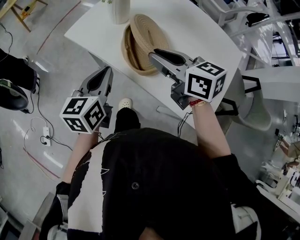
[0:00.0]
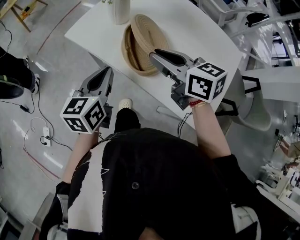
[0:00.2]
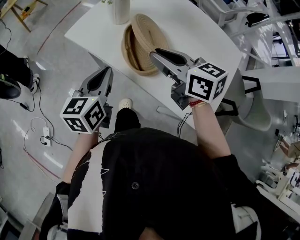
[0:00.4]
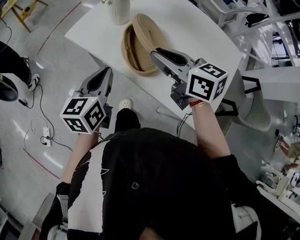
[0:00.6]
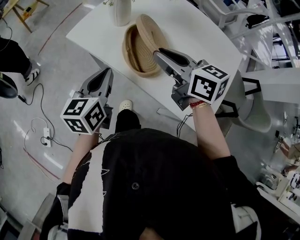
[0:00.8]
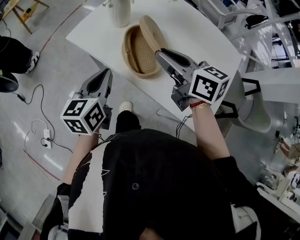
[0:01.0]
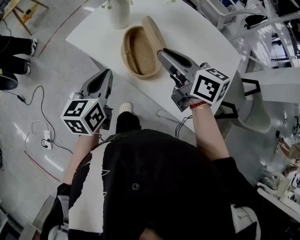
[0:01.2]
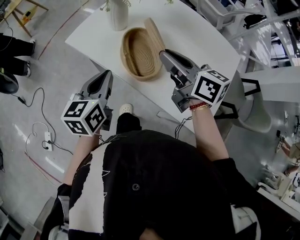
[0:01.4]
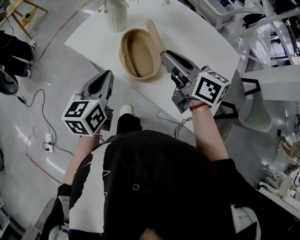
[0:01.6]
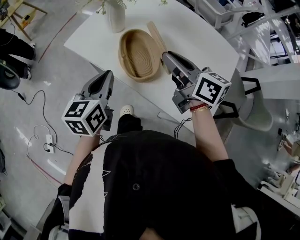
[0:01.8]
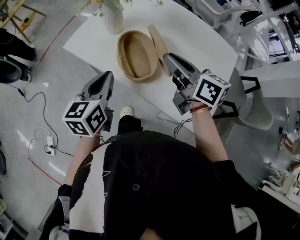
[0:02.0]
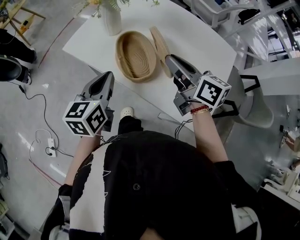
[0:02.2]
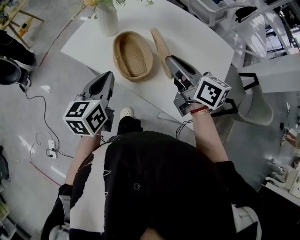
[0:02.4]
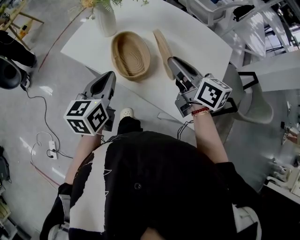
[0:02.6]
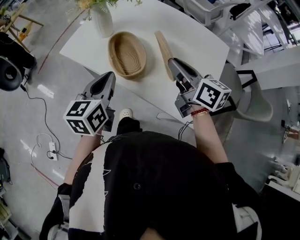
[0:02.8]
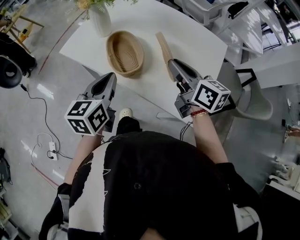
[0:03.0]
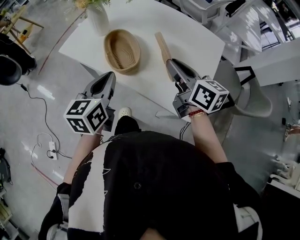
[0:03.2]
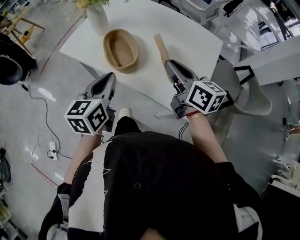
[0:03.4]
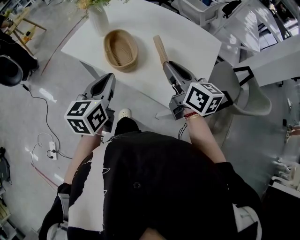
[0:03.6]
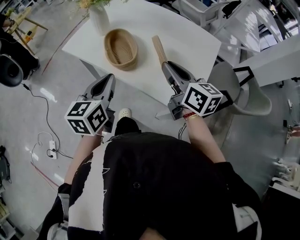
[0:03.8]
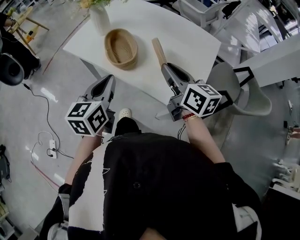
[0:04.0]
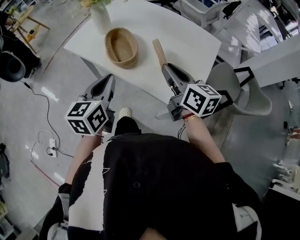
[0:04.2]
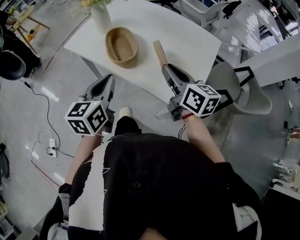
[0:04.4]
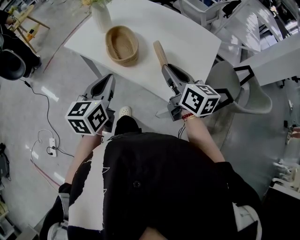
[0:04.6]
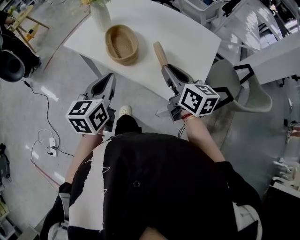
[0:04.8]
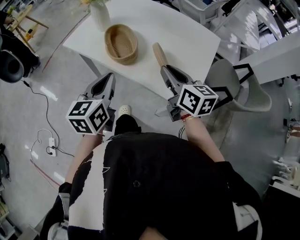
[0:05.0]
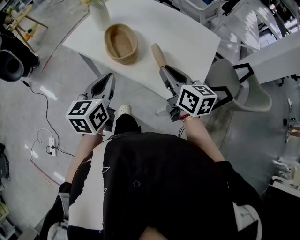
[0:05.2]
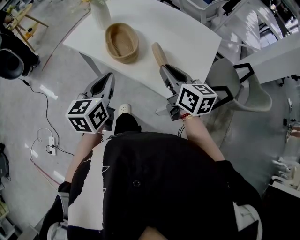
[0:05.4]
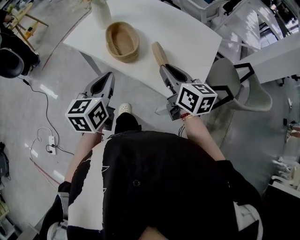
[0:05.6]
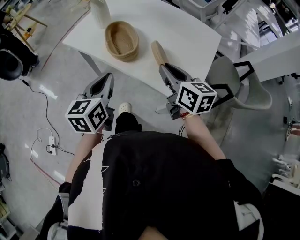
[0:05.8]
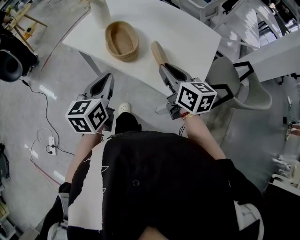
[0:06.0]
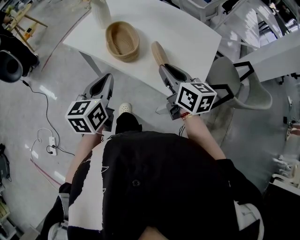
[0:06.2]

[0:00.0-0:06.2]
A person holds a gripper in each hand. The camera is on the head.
0:00.0 to 0:01.6: The right gripper is displaced to the right by roughly 5 cm.
0:01.6 to 0:03.2: The two grippers go some 10 cm to the right and backward.
0:03.2 to 0:04.6: The grippers both shift backward by roughly 5 cm.
0:04.6 to 0:06.2: The grippers move only a little.

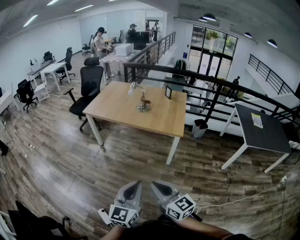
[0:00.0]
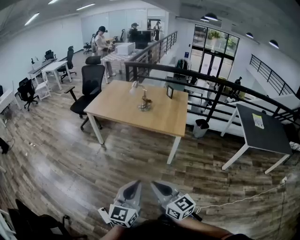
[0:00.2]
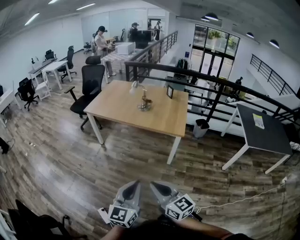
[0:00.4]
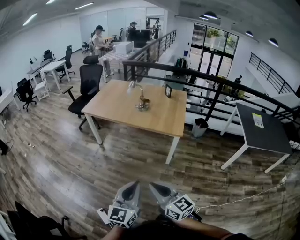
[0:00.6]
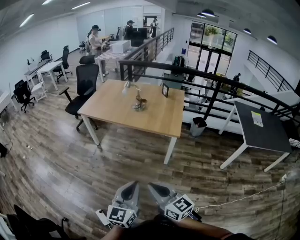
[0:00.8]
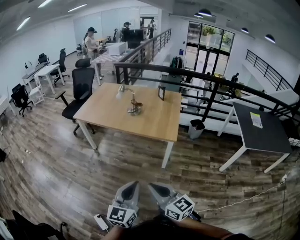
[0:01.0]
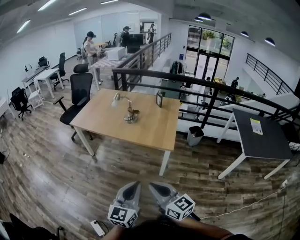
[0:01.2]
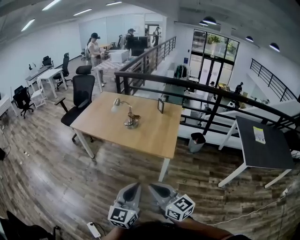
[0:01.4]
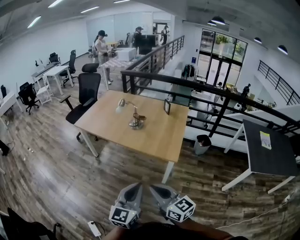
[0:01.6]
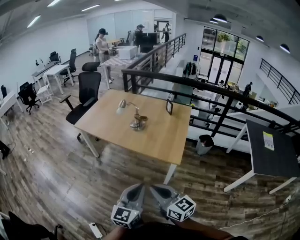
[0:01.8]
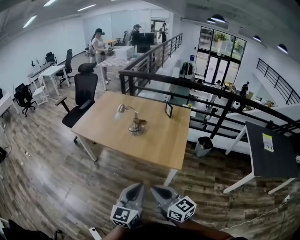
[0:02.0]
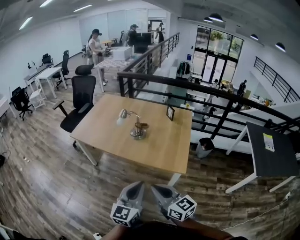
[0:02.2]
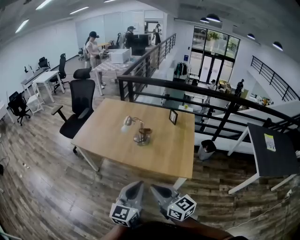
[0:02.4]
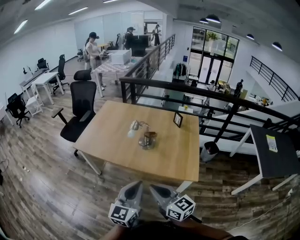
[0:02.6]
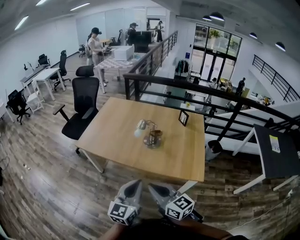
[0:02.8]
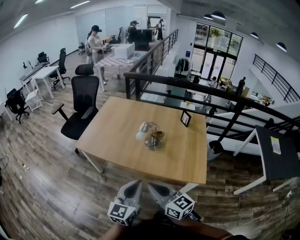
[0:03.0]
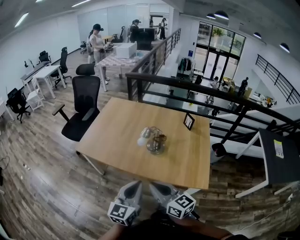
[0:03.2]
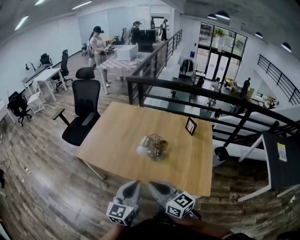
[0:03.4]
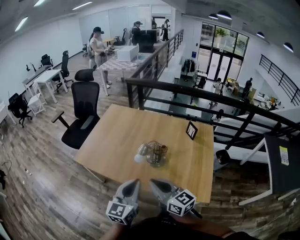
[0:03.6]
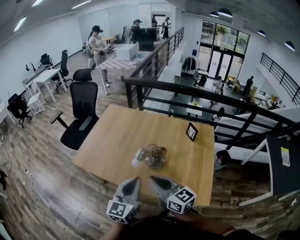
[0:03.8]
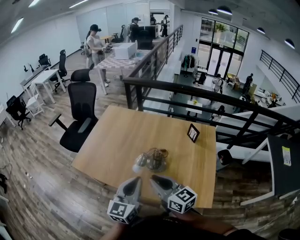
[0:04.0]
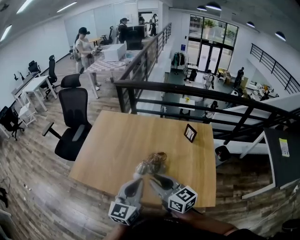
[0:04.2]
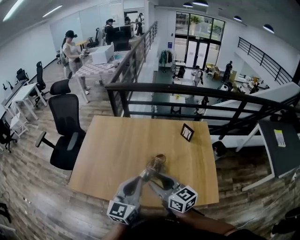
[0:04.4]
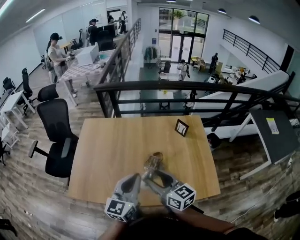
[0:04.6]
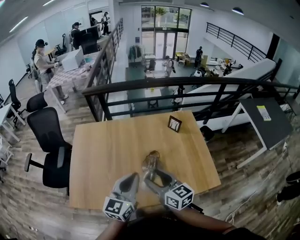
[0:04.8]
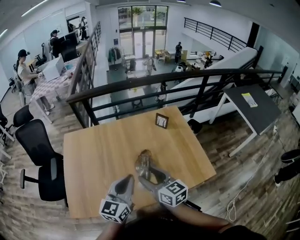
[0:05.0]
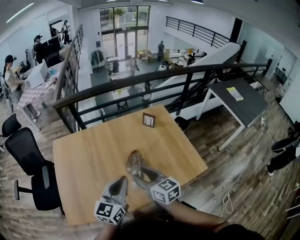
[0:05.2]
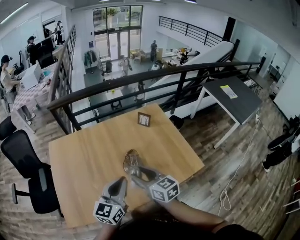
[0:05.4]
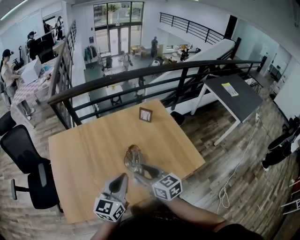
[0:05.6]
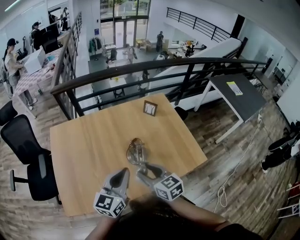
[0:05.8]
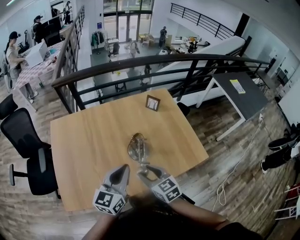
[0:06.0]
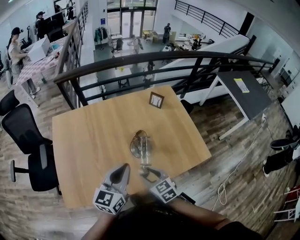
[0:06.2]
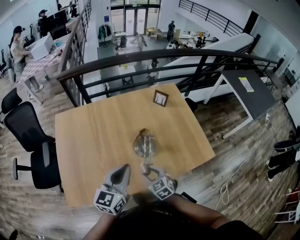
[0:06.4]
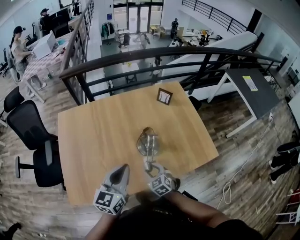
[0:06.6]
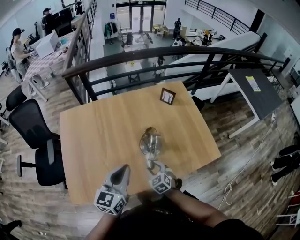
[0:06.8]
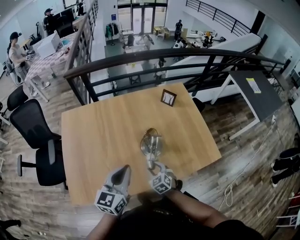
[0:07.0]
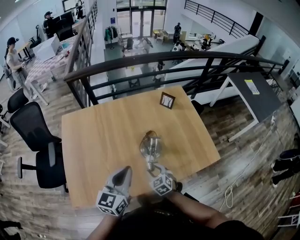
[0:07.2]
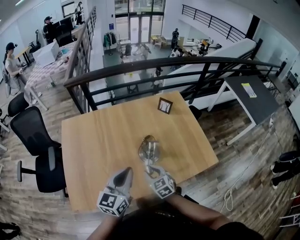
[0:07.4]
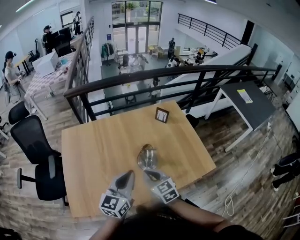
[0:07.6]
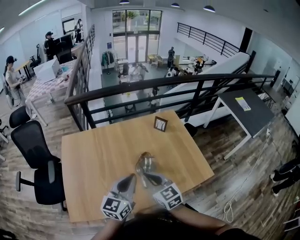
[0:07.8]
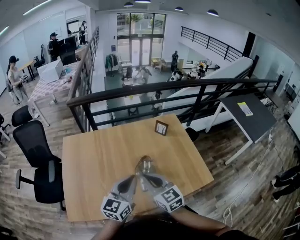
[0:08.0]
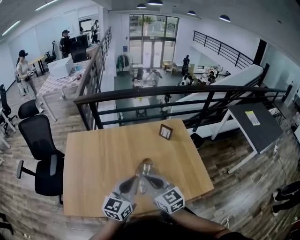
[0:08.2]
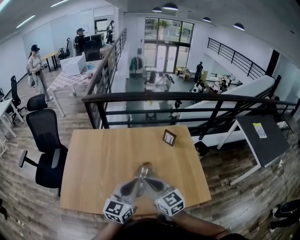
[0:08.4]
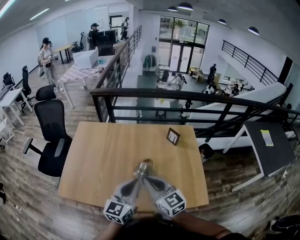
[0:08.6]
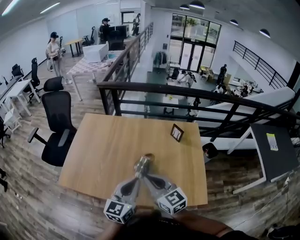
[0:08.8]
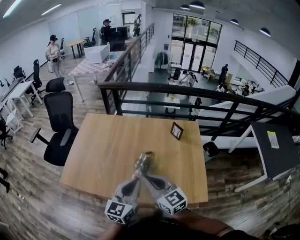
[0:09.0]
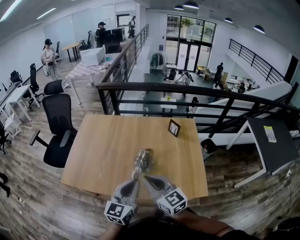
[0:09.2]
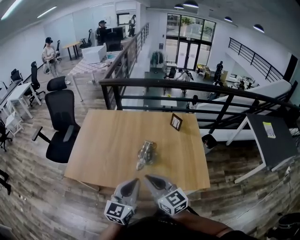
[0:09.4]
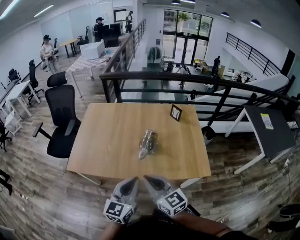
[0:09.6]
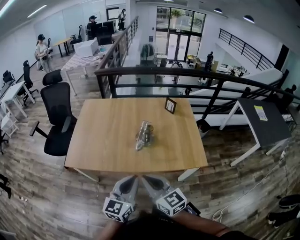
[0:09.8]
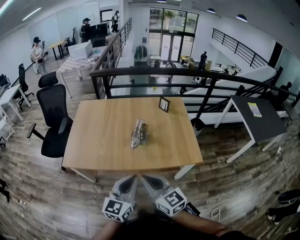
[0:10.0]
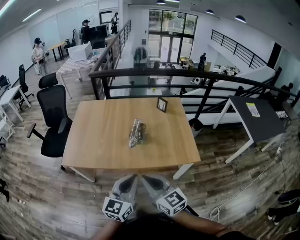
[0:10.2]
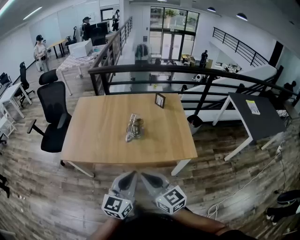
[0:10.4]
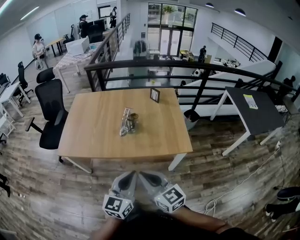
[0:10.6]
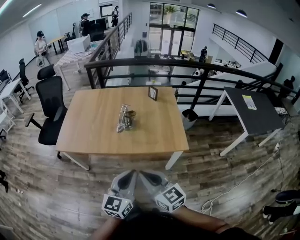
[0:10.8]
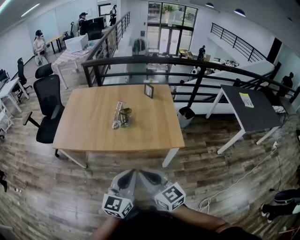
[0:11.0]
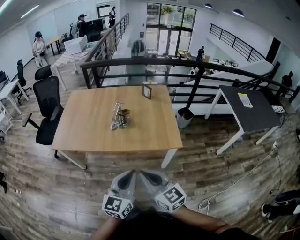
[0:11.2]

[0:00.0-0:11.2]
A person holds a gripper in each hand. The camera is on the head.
0:00.0 to 0:01.6: The two grippers go approximately 25 cm forward and to the right.
0:01.6 to 0:03.2: Both grippers move forward and to the left, approximately 40 cm.
0:03.2 to 0:04.8: The right gripper moves approximately 30 cm, changes its angle by approximately 30 degrees, and opens its fingers. The left gripper changes place by approximately 30 cm, and changes its angle by some 20 degrees.
0:04.8 to 0:06.4: The right gripper is displaced downward by some 20 cm, and tilts its fingers roughly 30 degrees downward; the left gripper moves approximately 5 cm.
0:06.4 to 0:08.0: The left gripper shifts by roughly 5 cm. Meanwhile the right gripper is displaced upward by some 20 cm, changes its angle by some 30 degrees, and closes its fingers.
0:08.0 to 0:09.6: Both grippers travel together backward, about 20 cm. The left gripper changes its angle by approximately 20 degrees, while the right gripper changes its angle by roughly 20 degrees.
0:09.6 to 0:11.2: Both grippers move backward and to the right, about 25 cm.

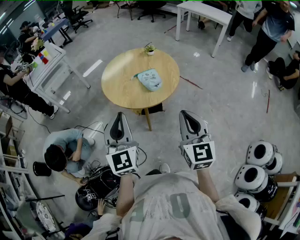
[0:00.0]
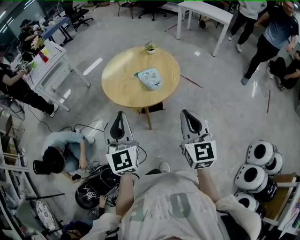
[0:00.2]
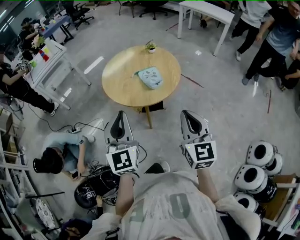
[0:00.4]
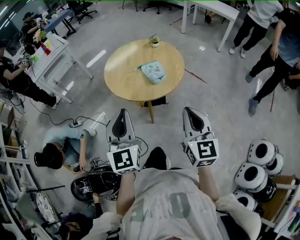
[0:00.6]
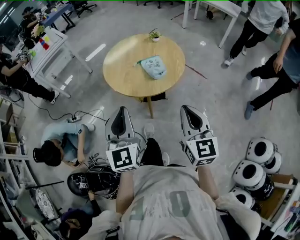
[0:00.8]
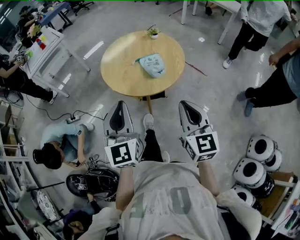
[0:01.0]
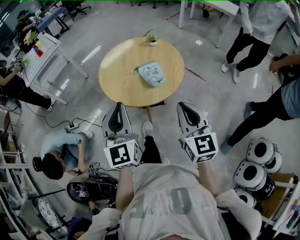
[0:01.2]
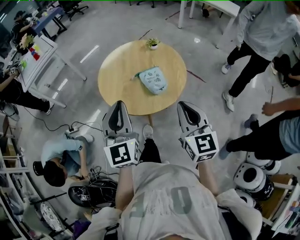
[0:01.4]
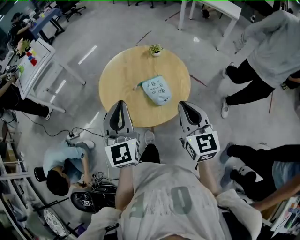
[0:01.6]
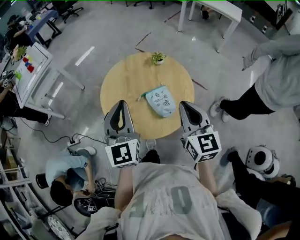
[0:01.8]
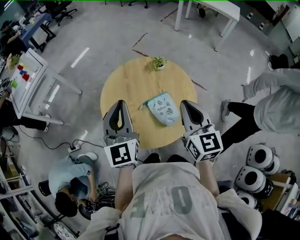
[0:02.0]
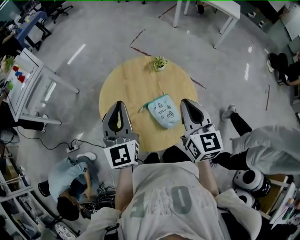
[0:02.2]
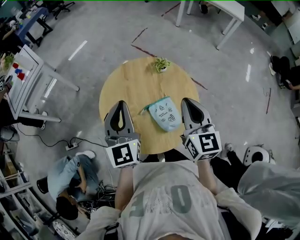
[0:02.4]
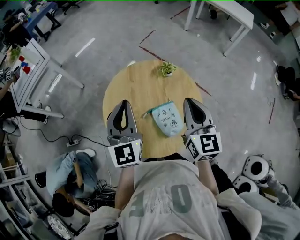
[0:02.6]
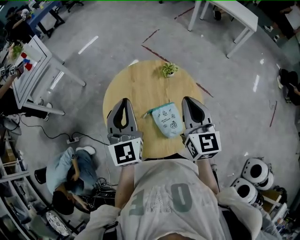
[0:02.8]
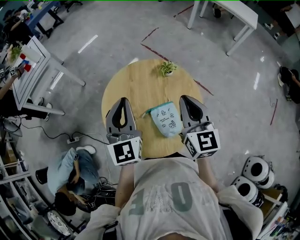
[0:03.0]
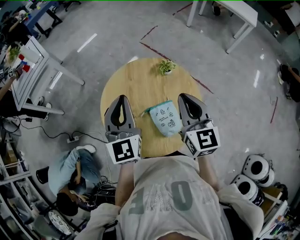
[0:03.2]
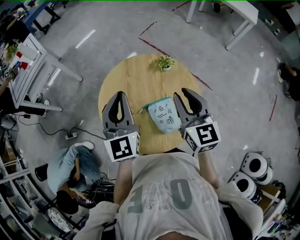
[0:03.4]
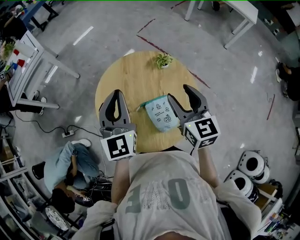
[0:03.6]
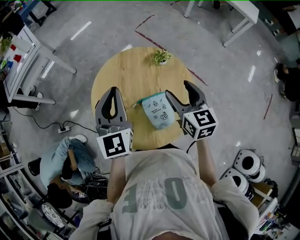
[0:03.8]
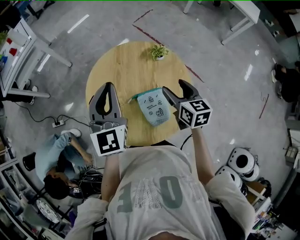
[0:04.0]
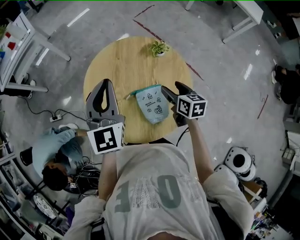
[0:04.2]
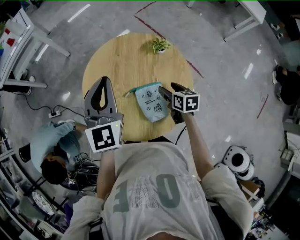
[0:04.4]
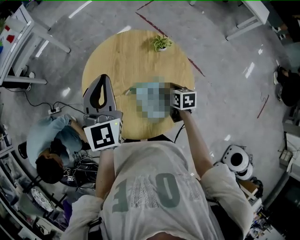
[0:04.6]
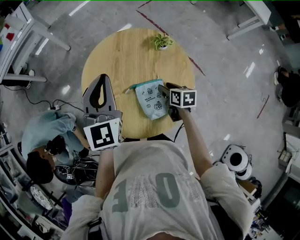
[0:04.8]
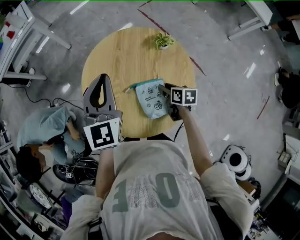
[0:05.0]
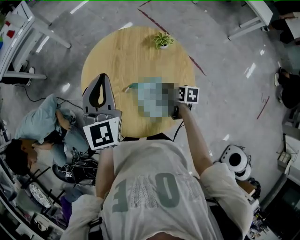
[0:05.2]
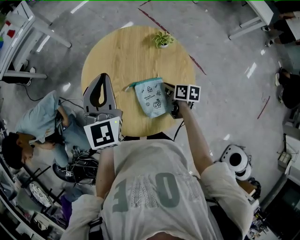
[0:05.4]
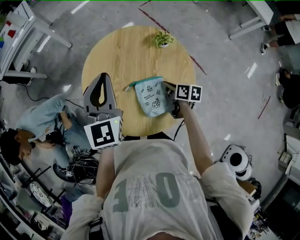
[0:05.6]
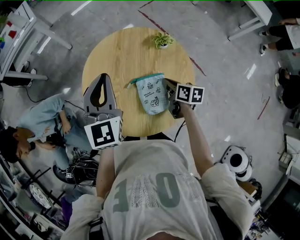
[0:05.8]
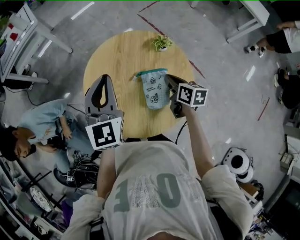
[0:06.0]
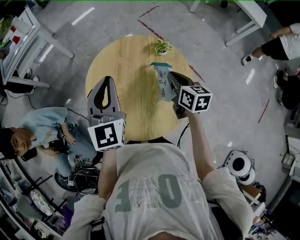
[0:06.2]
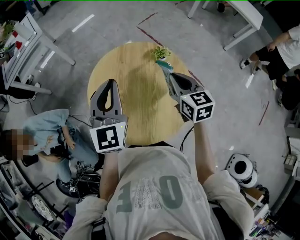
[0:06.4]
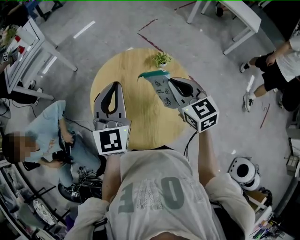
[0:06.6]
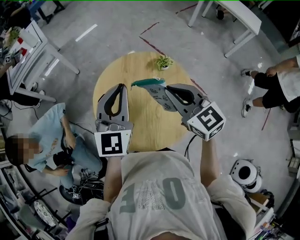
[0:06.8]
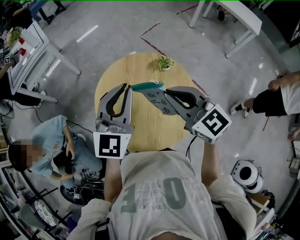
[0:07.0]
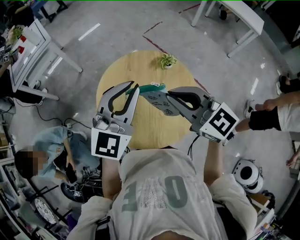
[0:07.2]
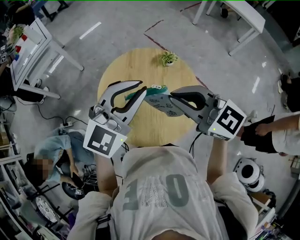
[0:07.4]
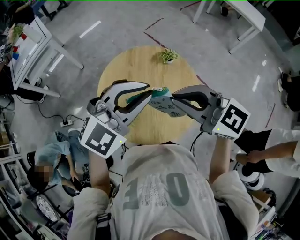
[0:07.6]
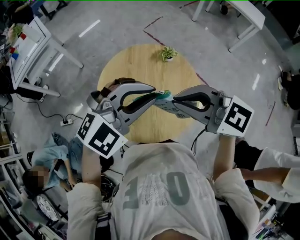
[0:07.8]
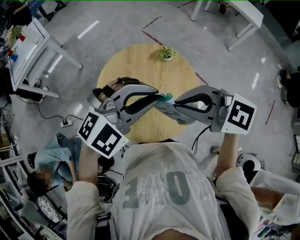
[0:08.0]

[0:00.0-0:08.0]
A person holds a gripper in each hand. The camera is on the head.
0:00.0 to 0:01.6: The grippers both shift forward by approximately 25 cm.
0:01.6 to 0:03.2: Both grippers travel together forward, some 25 cm.
0:03.2 to 0:04.8: The right gripper heads downward, covering approximately 30 cm, points its fingers roughly 40 degrees further downward, and opens.
0:04.8 to 0:06.4: The right gripper shifts roughly 20 cm upward, swivels some 40 degrees, and closes up.
0:06.4 to 0:08.0: The left gripper shifts by roughly 15 cm, and turns by approximately 70 degrees. The right gripper changes place by approximately 20 cm, and swivels about 50 degrees.
